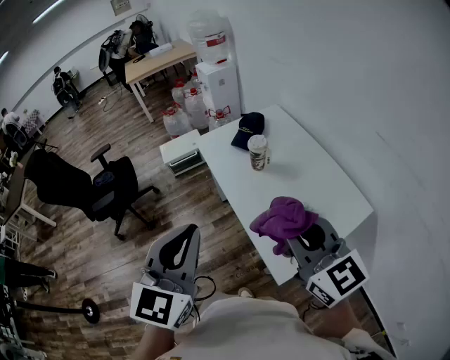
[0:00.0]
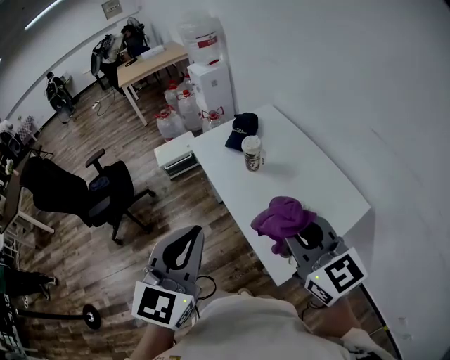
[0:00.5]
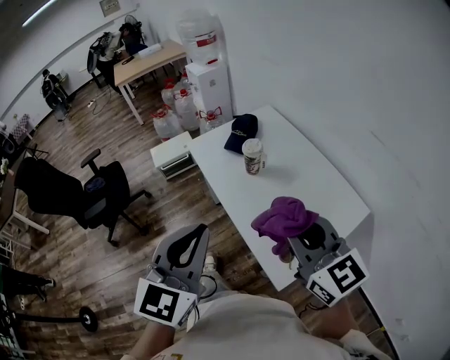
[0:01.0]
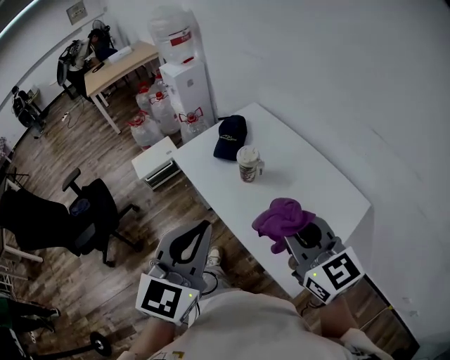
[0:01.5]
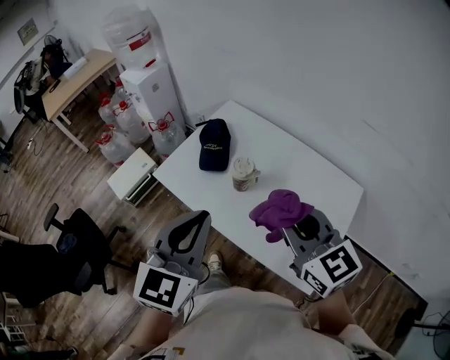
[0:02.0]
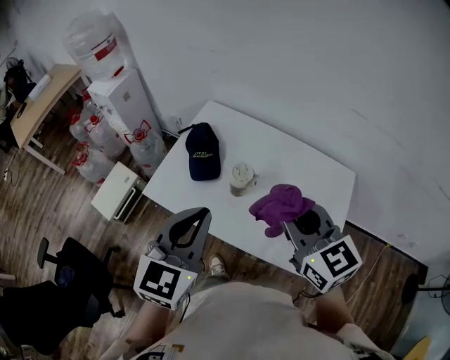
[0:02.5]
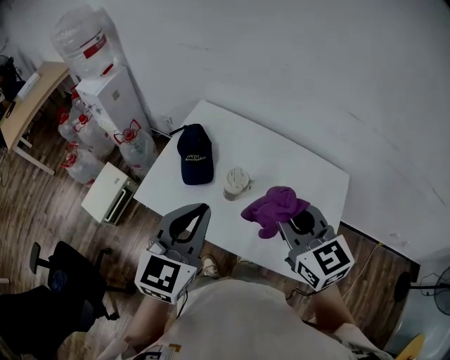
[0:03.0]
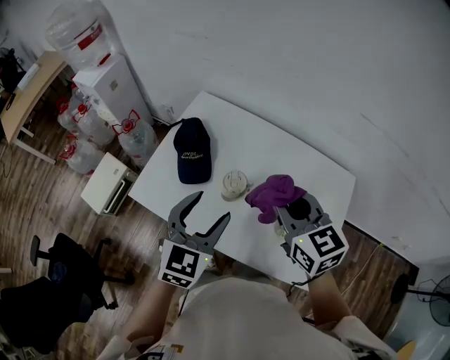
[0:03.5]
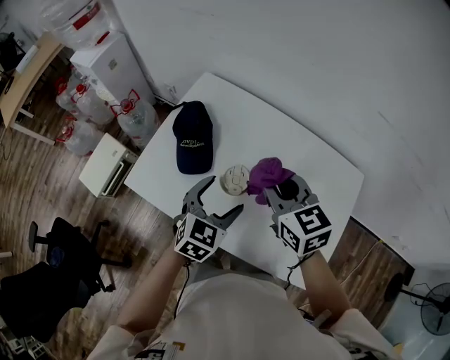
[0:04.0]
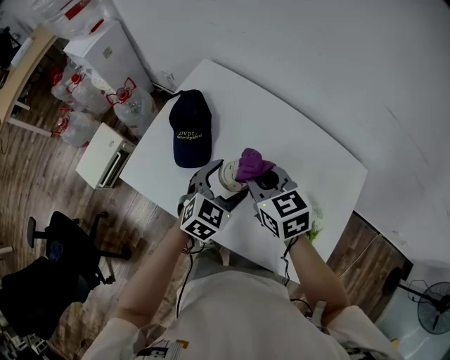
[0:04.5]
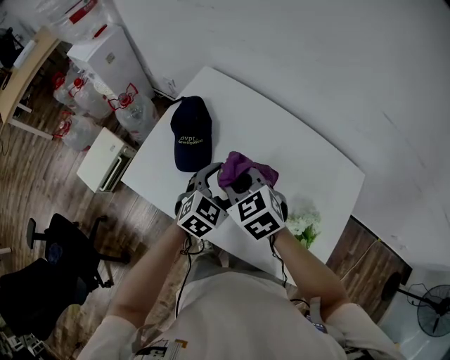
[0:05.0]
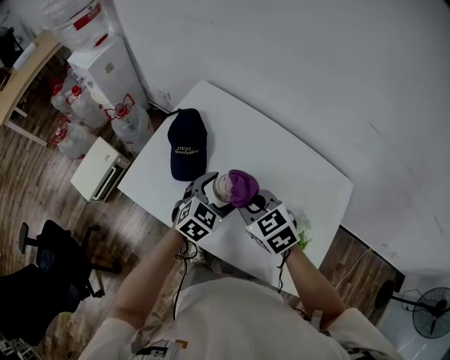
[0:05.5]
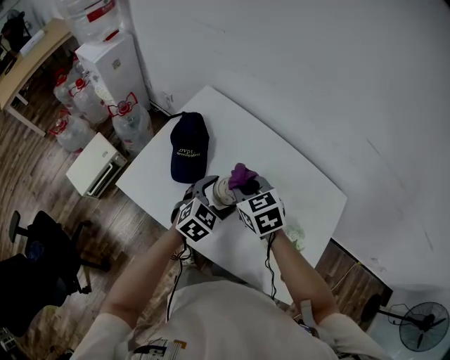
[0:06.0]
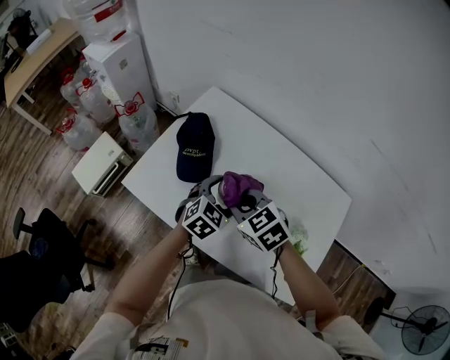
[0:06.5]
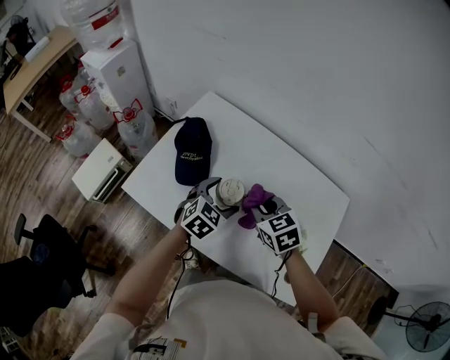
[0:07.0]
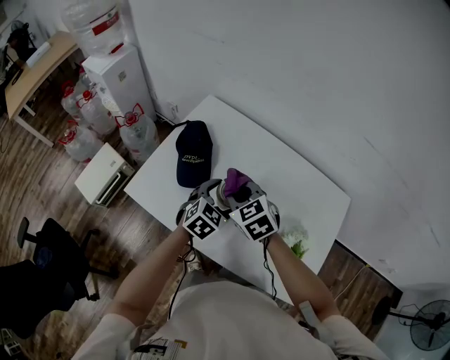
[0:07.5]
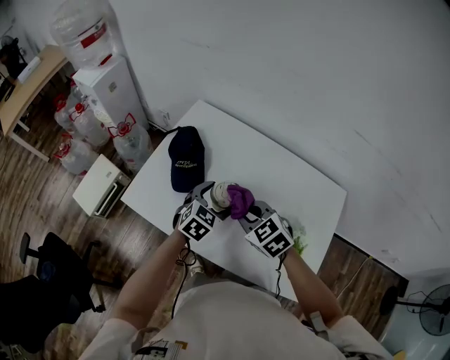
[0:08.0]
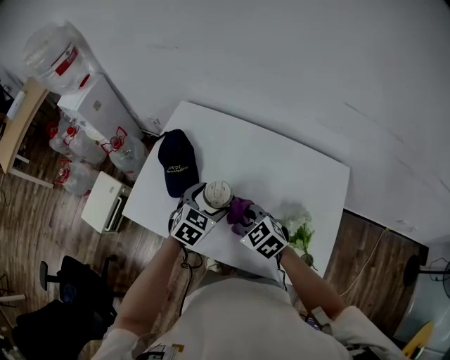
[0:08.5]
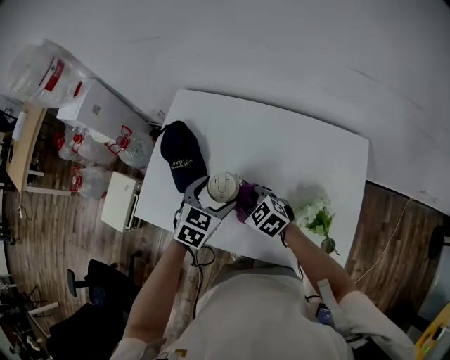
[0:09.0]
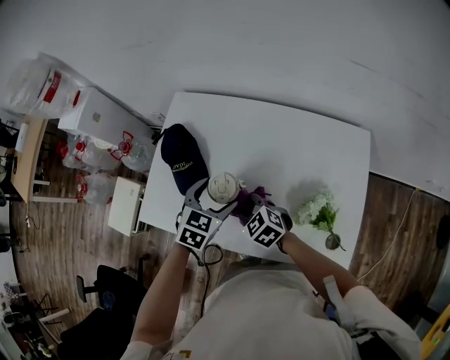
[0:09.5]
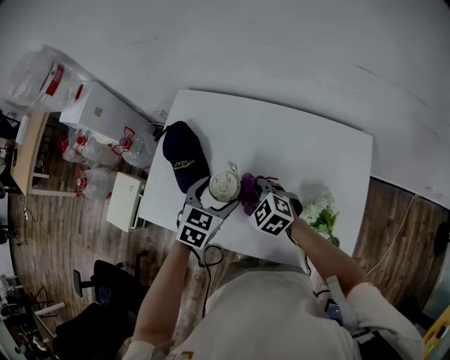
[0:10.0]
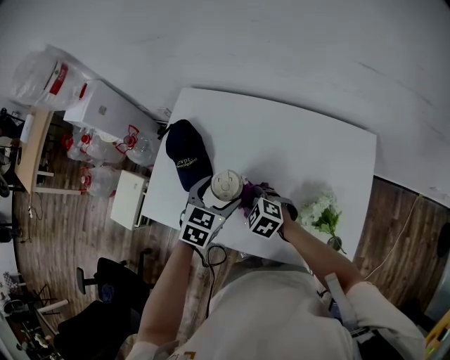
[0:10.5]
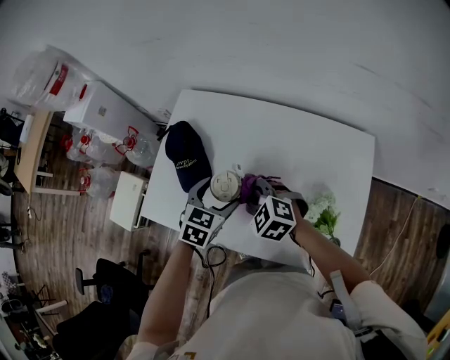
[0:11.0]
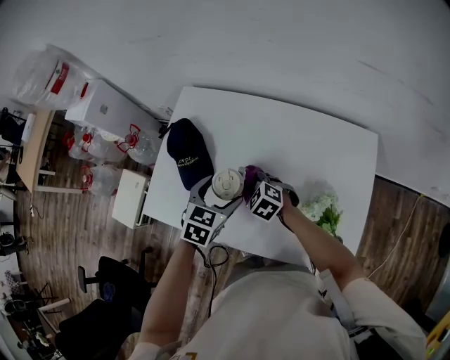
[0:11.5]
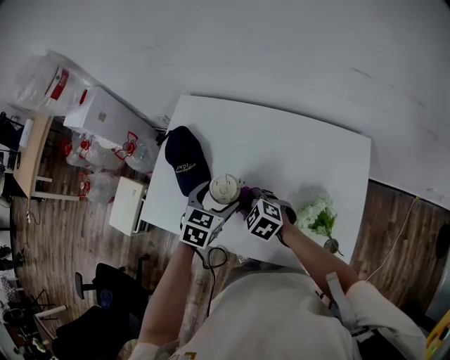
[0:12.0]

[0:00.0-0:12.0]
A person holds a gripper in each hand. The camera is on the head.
0:00.0 to 0:02.0: The left gripper shifts by some 30 cm, and swivels some 30 degrees. The right gripper changes place by about 25 cm, and swivels roughly 30 degrees.
0:02.0 to 0:04.0: The left gripper is displaced downward and forward by roughly 30 cm, turns by about 30 degrees, and opens its fingers, while the right gripper moves forward and downward, some 25 cm.
0:04.0 to 0:06.0: The right gripper heads downward, covering about 10 cm; the left gripper changes place by approximately 5 cm.
0:06.0 to 0:08.0: The right gripper goes forward and backward, roughly 10 cm each way, reversing 2 times.
0:08.0 to 0:10.0: The right gripper travels downward by about 10 cm.
0:10.0 to 0:12.0: The right gripper moves up and down over approximately 10 cm, changing direction 3 times.

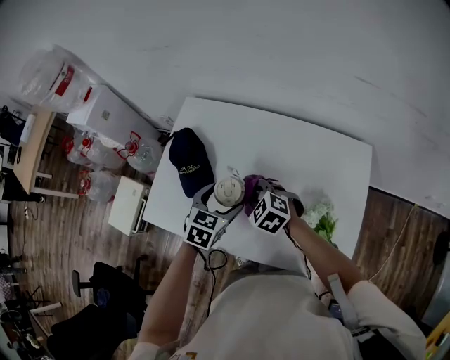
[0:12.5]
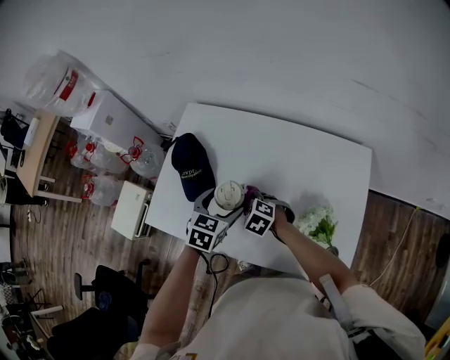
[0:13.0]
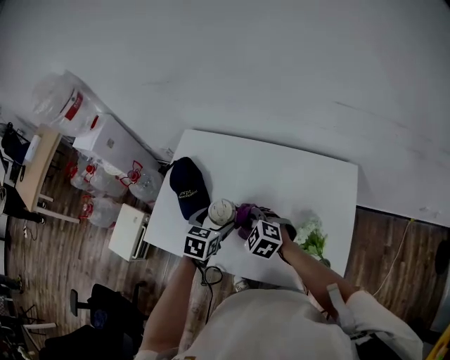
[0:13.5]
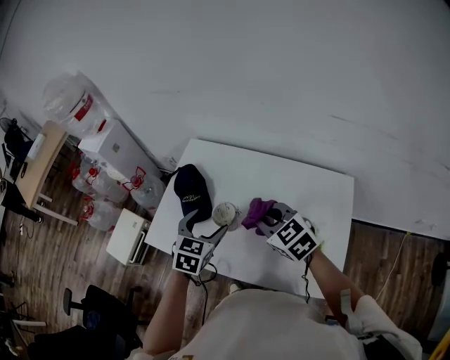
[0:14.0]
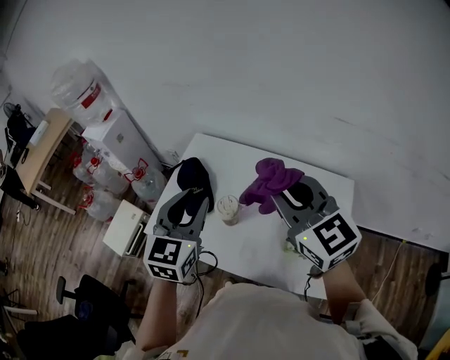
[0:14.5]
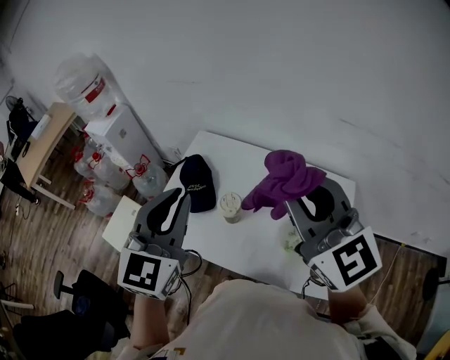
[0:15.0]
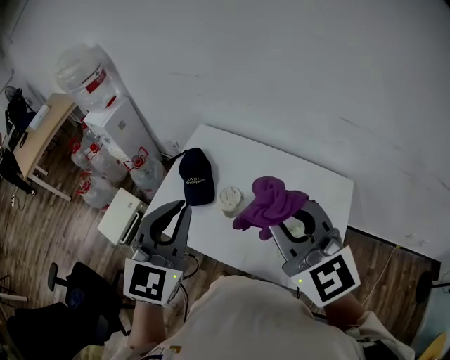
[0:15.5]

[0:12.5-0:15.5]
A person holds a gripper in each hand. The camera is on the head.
0:12.5 to 0:14.0: The right gripper heads upward, covering some 15 cm, and changes its angle by approximately 20 degrees, while the left gripper travels upward by about 10 cm.
0:14.0 to 0:15.5: The two grippers go about 25 cm upward. The left gripper rotates about 30 degrees, and closes up; the right gripper tilts its fingers approximately 30 degrees upward.

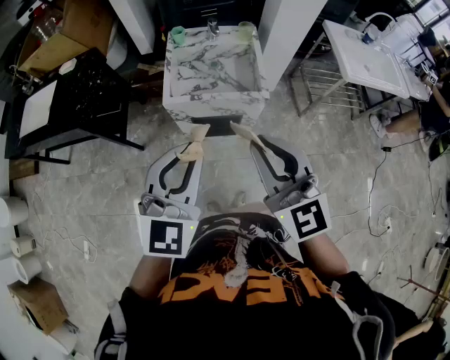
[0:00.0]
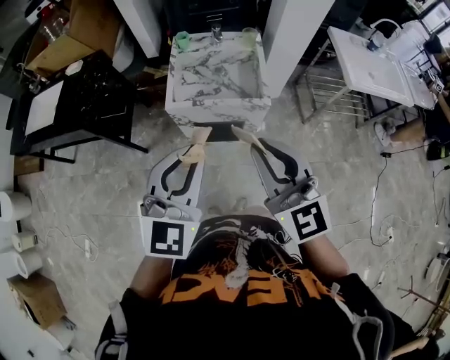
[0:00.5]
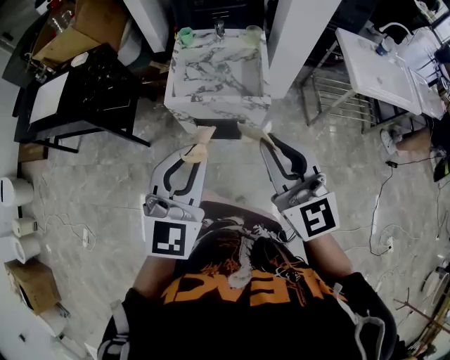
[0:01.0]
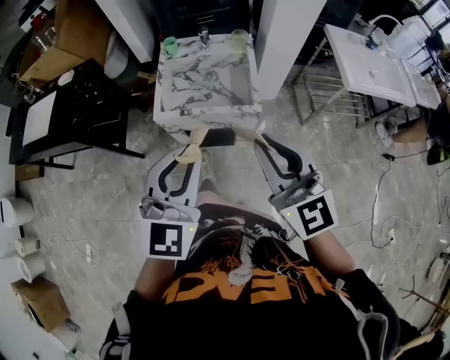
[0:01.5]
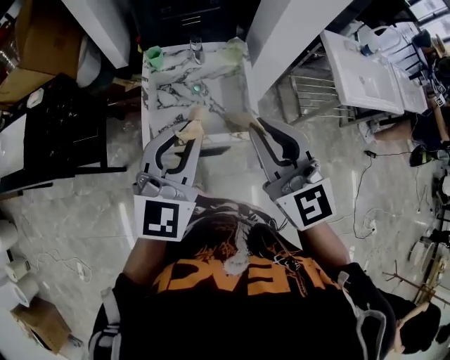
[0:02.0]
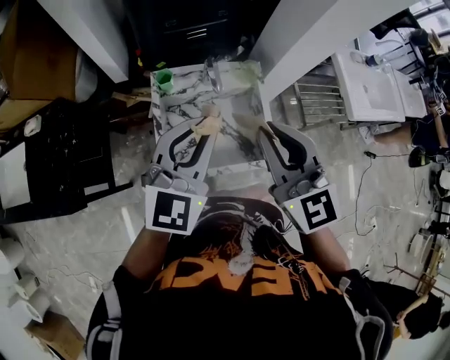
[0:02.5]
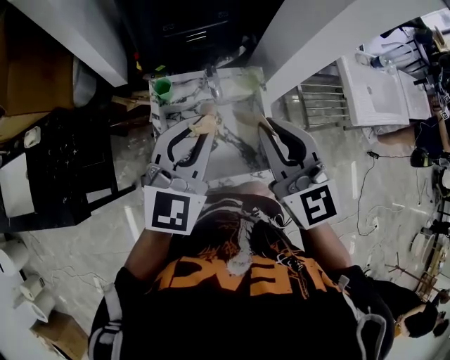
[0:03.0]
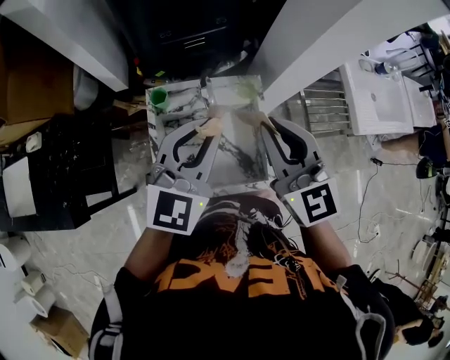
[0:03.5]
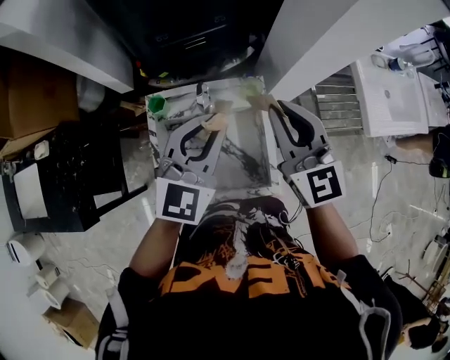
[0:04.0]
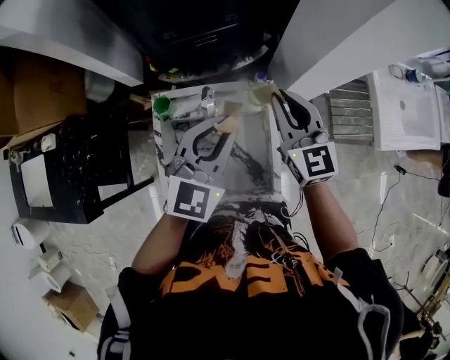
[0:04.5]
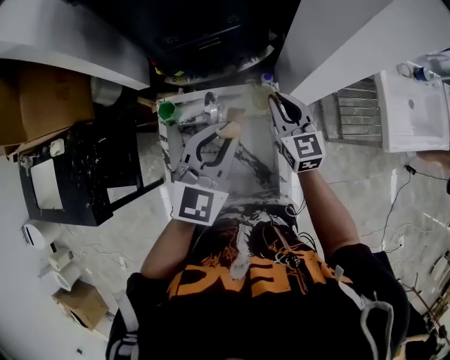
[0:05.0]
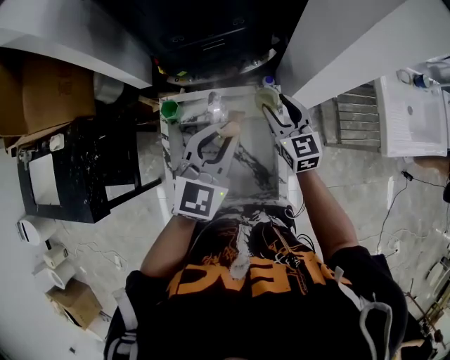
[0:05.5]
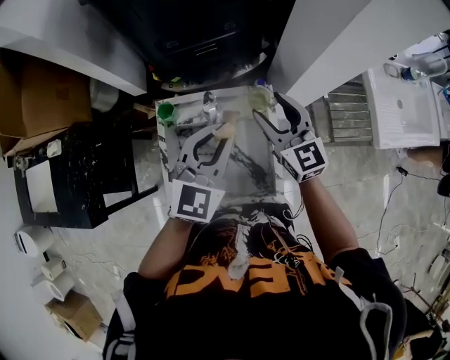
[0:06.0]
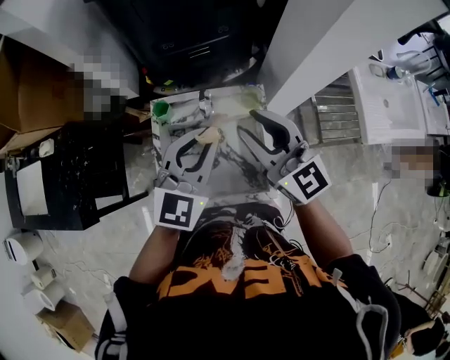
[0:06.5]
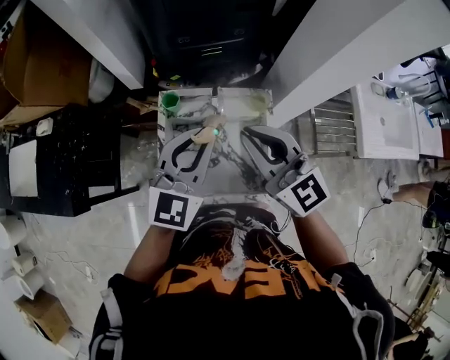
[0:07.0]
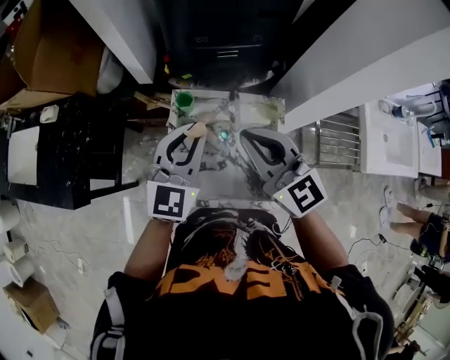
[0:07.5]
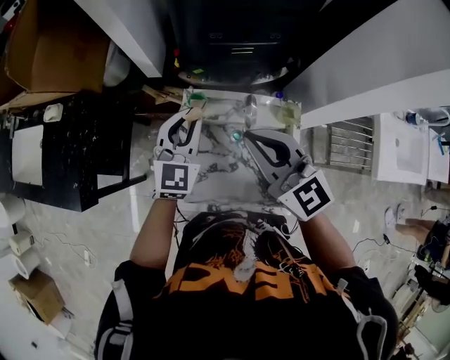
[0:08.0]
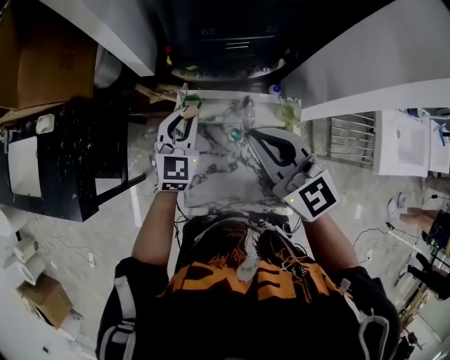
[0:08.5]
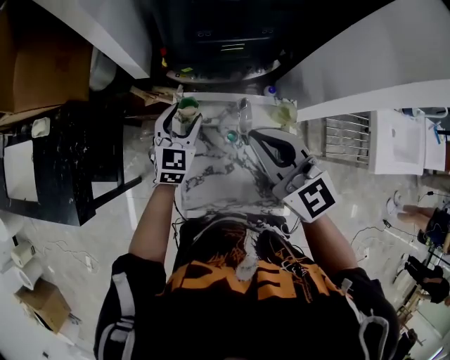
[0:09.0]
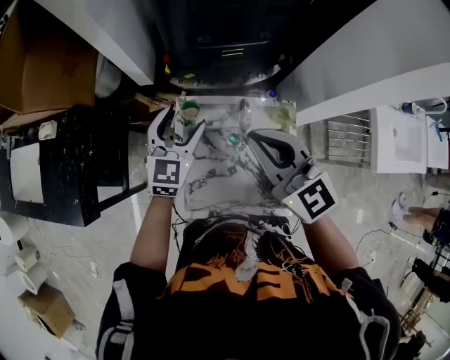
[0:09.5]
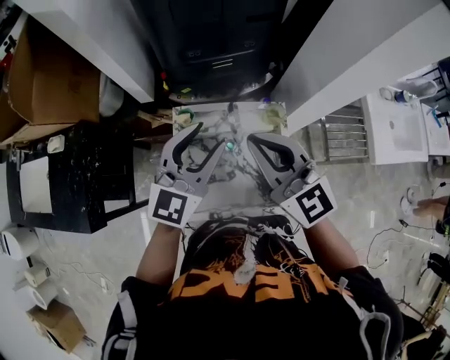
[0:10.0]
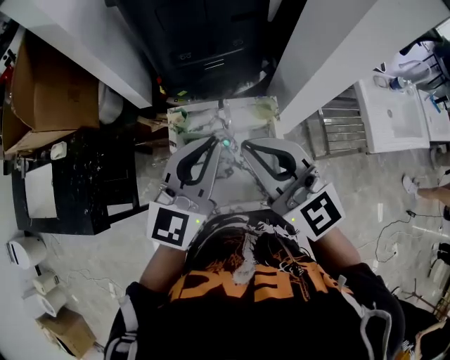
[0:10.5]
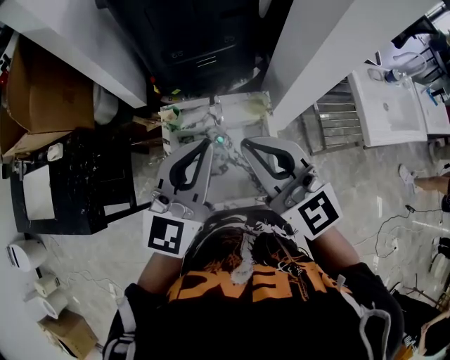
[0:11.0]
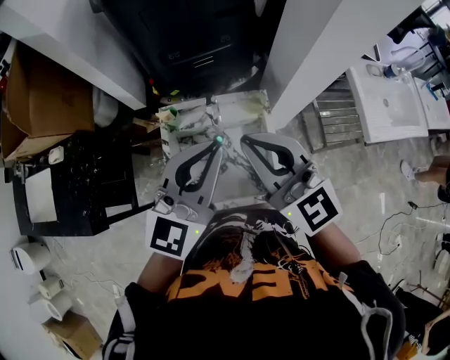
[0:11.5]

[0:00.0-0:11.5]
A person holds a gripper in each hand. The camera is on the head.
0:00.0 to 0:02.0: The two grippers go approximately 25 cm forward.
0:02.0 to 0:04.0: The grippers both shift forward by approximately 30 cm.
0:04.0 to 0:06.0: The right gripper moves downward and forward, some 10 cm, and opens its fingers.
0:06.0 to 0:07.5: The left gripper is displaced to the left by roughly 15 cm. The right gripper heads to the left, upward and backward, covering some 20 cm, swivels about 20 degrees, and closes.
0:07.5 to 0:09.5: The right gripper shifts some 5 cm forward. The left gripper travels forward and downward by roughly 15 cm, and opens up.
0:09.5 to 0:11.5: The right gripper is displaced backward, upward and to the right by about 15 cm; the left gripper goes approximately 30 cm upward, backward and to the right, swivels some 30 degrees, and closes its fingers.
